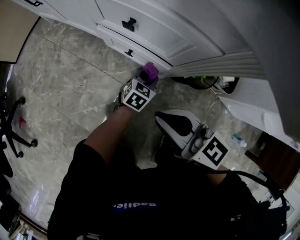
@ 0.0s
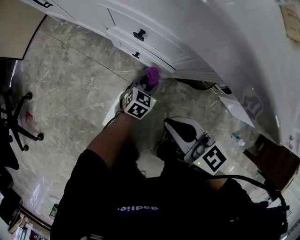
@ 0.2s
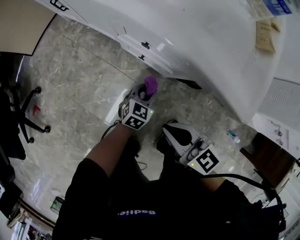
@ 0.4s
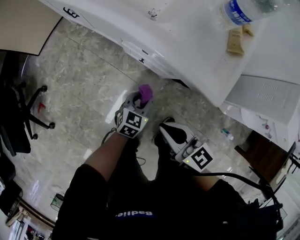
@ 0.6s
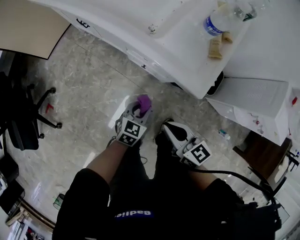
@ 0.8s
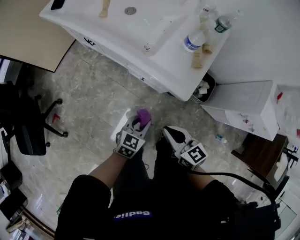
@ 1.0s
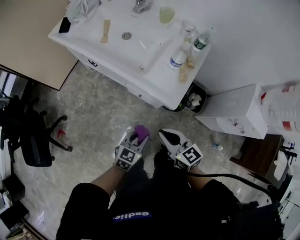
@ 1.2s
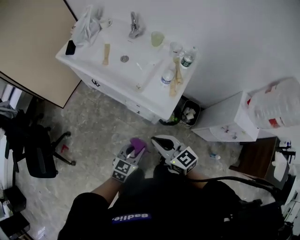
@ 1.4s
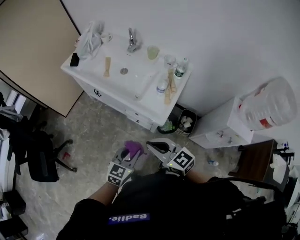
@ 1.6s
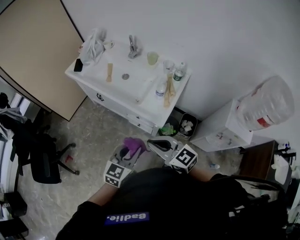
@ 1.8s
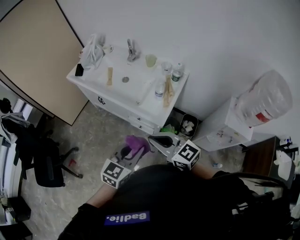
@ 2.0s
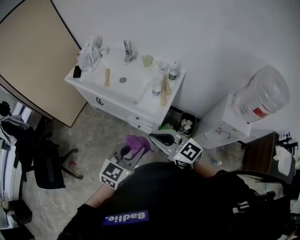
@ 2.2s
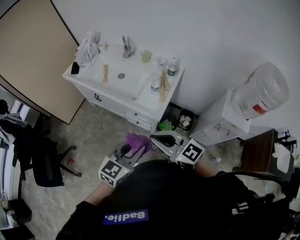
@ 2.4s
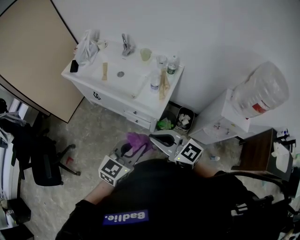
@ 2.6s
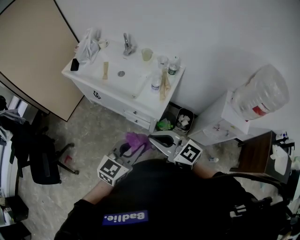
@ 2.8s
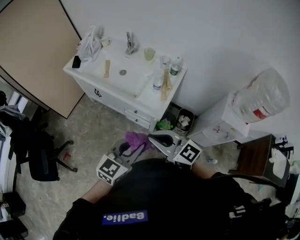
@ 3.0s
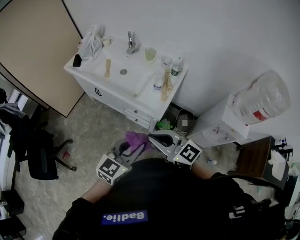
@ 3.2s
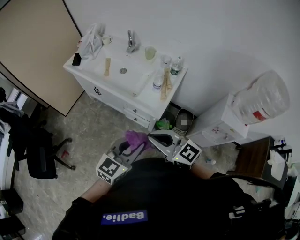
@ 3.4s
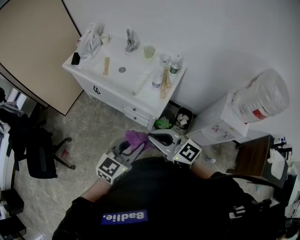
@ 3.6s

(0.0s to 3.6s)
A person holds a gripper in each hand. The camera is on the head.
0.0s - 1.8s: Both grippers move upward, some 70 cm. The left gripper rotates some 20 degrees.
1.8s - 3.6s: The left gripper goes roughly 5 cm upward. The right gripper changes place by about 5 cm.

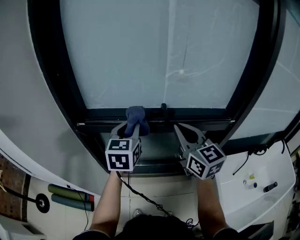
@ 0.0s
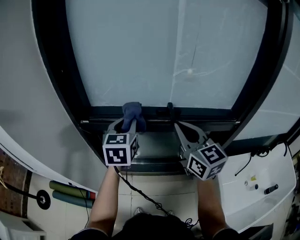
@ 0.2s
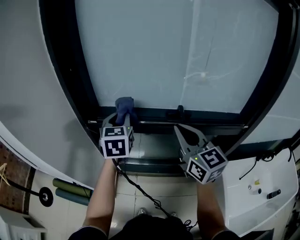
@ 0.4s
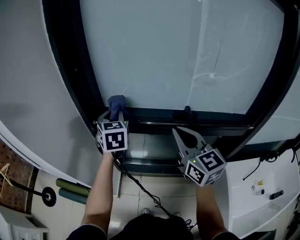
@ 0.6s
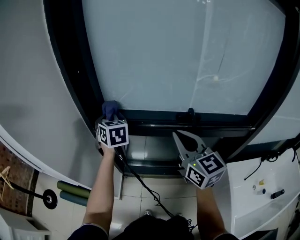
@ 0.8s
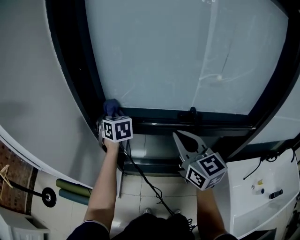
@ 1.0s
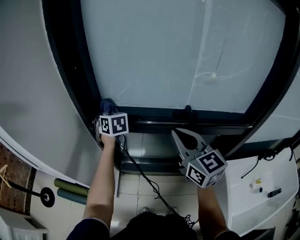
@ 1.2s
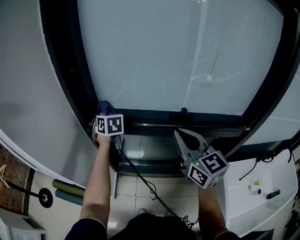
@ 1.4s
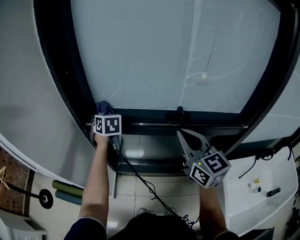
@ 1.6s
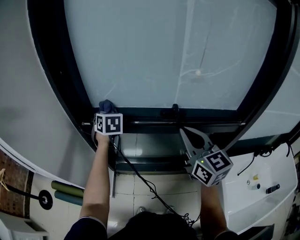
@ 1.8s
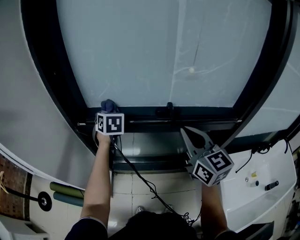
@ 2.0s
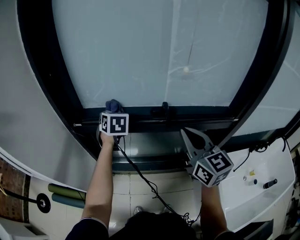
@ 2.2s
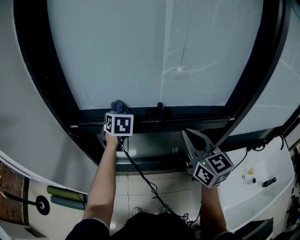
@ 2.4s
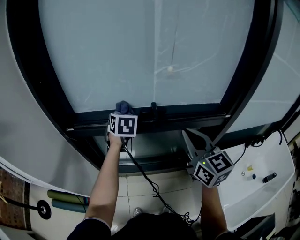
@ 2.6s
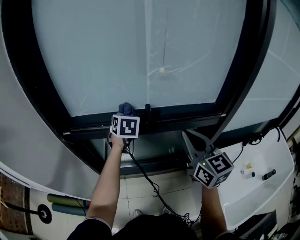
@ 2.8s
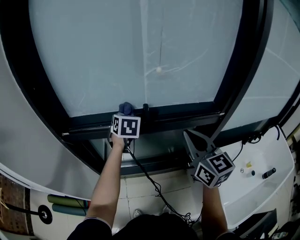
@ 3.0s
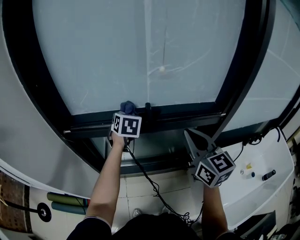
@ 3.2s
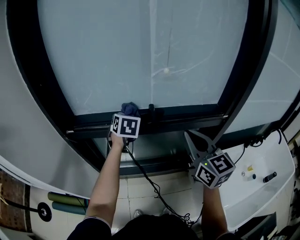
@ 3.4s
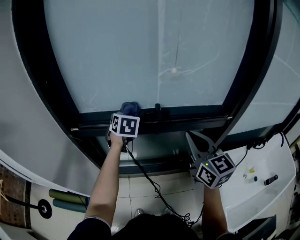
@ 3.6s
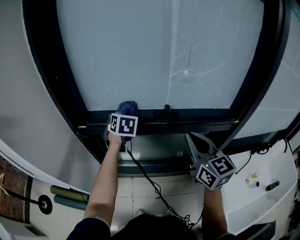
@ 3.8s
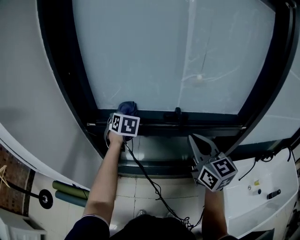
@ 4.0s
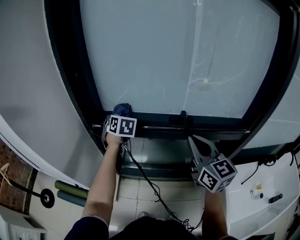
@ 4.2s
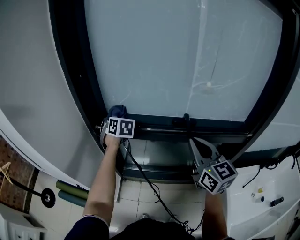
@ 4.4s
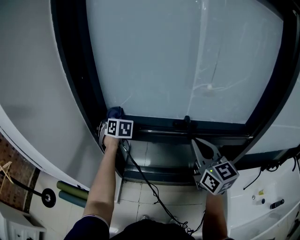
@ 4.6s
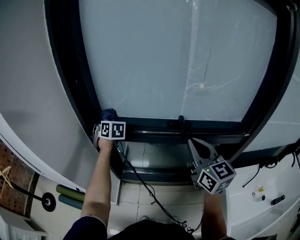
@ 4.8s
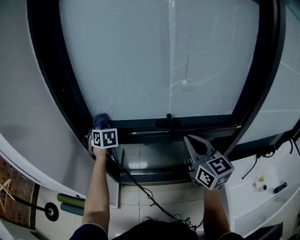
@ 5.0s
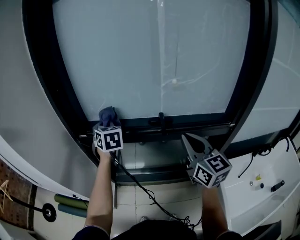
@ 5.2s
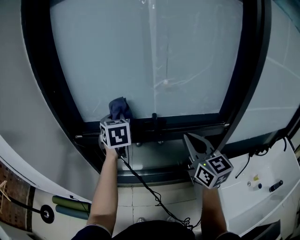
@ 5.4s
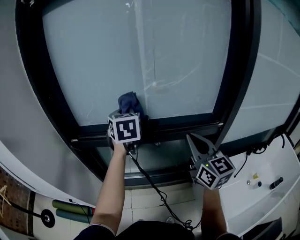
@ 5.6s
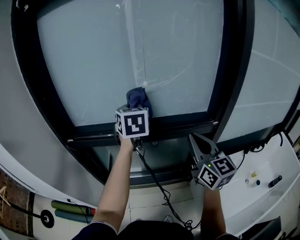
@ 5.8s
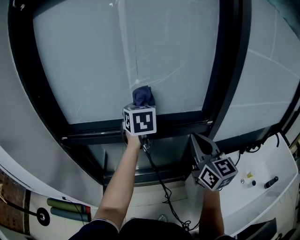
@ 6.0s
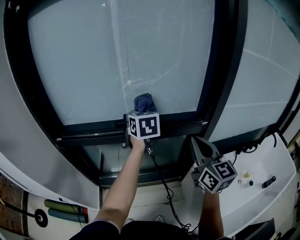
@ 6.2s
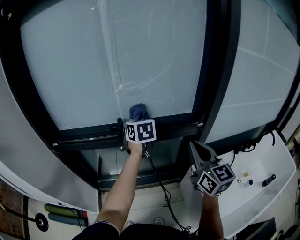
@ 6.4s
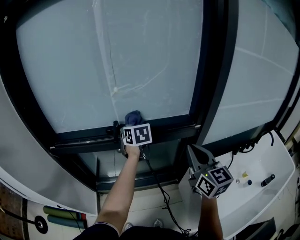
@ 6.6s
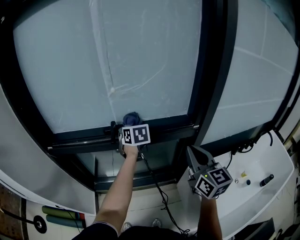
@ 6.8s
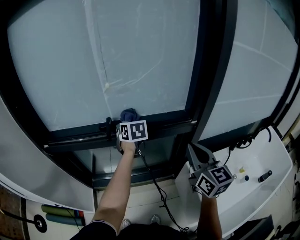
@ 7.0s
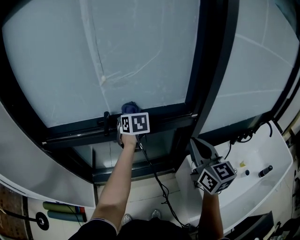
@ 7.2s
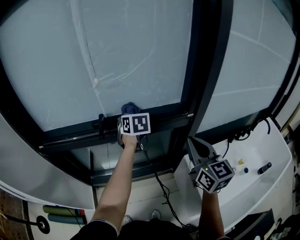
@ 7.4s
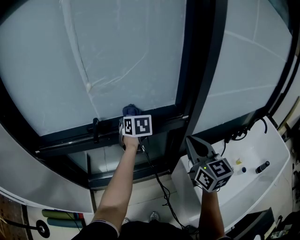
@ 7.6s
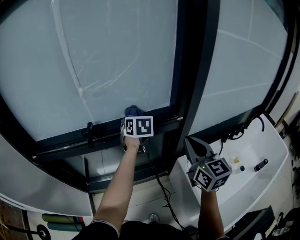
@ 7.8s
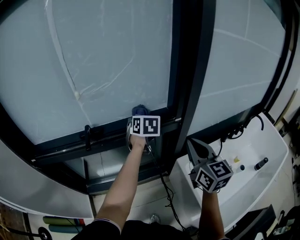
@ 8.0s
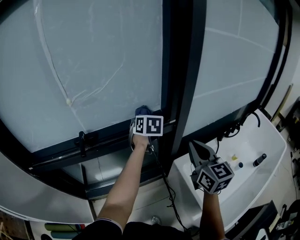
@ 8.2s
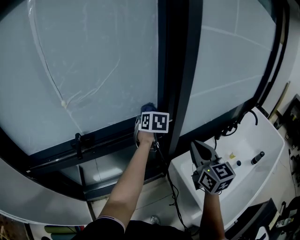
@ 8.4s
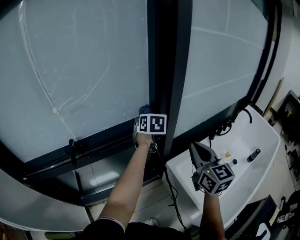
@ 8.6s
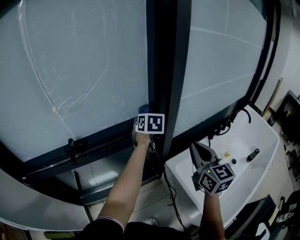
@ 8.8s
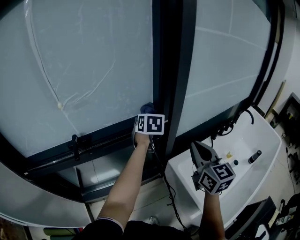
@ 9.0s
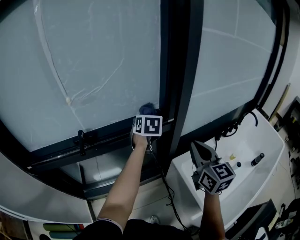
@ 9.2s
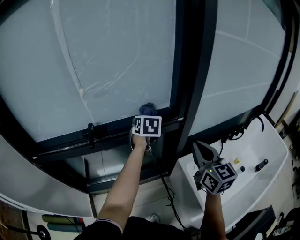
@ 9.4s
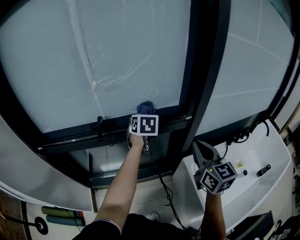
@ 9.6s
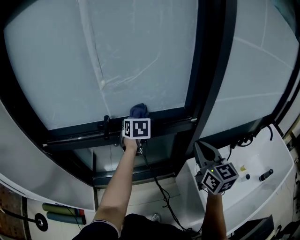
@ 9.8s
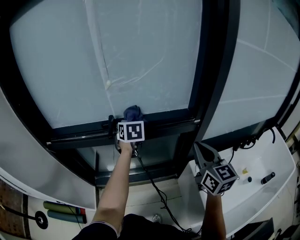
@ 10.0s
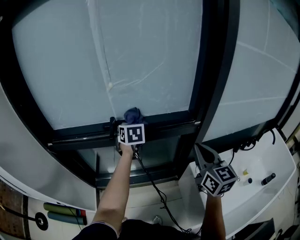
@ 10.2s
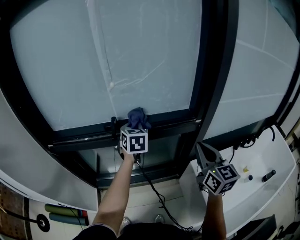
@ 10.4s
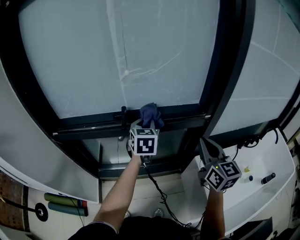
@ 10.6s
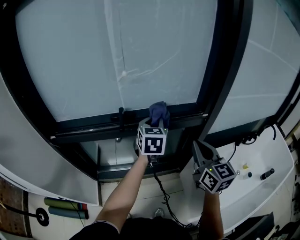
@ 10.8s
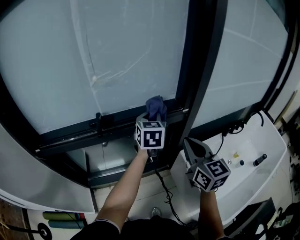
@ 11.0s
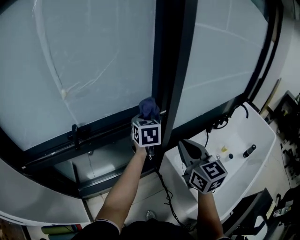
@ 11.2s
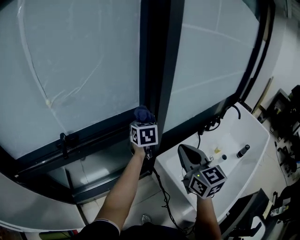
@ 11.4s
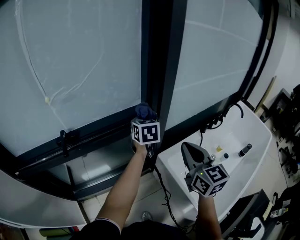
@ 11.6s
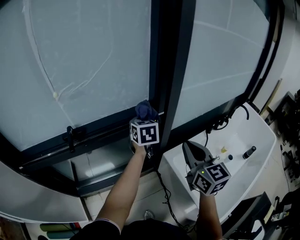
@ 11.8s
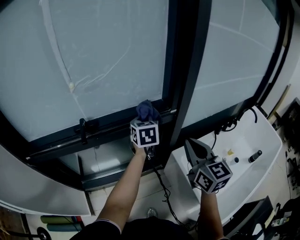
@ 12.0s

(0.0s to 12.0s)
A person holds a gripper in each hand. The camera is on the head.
0.0s - 1.6s: The left gripper heads forward and to the left, covering approximately 25 cm, and swivels some 40 degrees.
1.6s - 3.0s: The left gripper heads to the right, covering about 25 cm, and changes its angle by roughly 30 degrees; the right gripper shifts about 15 cm to the right and backward.
3.0s - 4.4s: The right gripper heads to the left, covering about 10 cm. The left gripper travels to the left by some 25 cm, and turns by some 30 degrees.
4.4s - 6.0s: The right gripper shifts by about 20 cm. The left gripper changes place by some 40 cm, and rotates approximately 40 degrees.
6.0s - 7.6s: The left gripper shifts approximately 20 cm downward and to the right, while the right gripper moves to the right and downward, roughly 10 cm.
7.6s - 9.0s: The right gripper travels to the right by roughly 10 cm. Meanwhile the left gripper heads to the right, covering some 20 cm, and changes its angle by approximately 20 degrees.
9.0s - 10.4s: The left gripper moves to the left, roughly 25 cm, and swivels approximately 20 degrees, while the right gripper is displaced to the left by roughly 10 cm.
10.4s - 12.0s: The left gripper goes approximately 20 cm to the right. The right gripper swings left and right, about 15 cm each way, with 2 reversals.

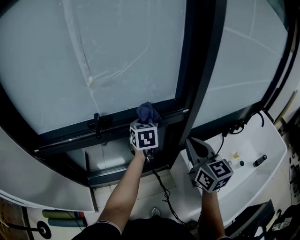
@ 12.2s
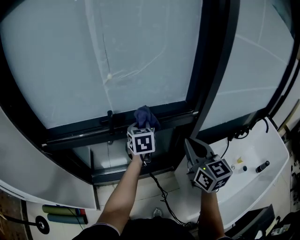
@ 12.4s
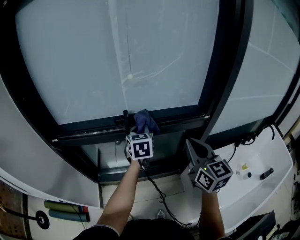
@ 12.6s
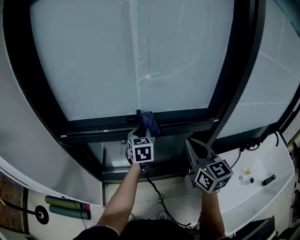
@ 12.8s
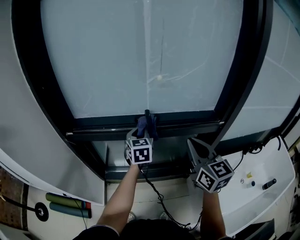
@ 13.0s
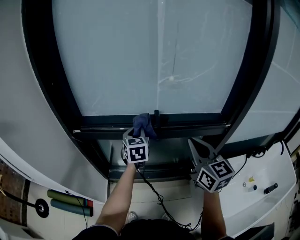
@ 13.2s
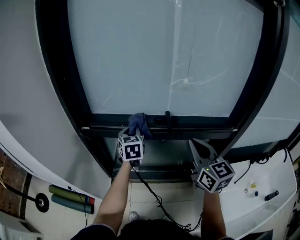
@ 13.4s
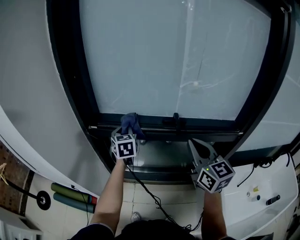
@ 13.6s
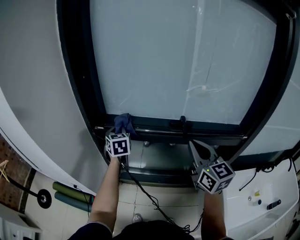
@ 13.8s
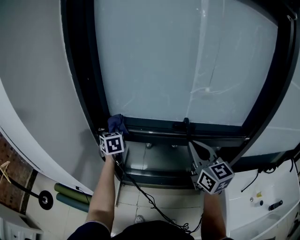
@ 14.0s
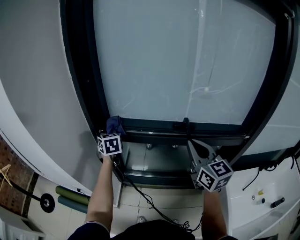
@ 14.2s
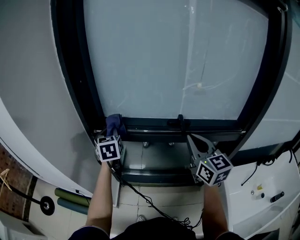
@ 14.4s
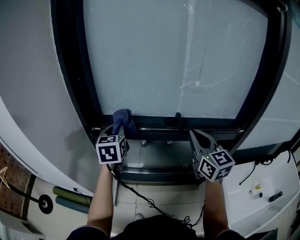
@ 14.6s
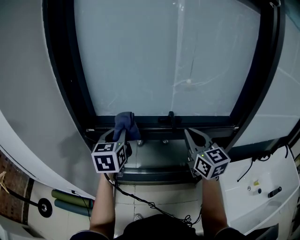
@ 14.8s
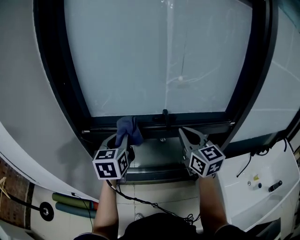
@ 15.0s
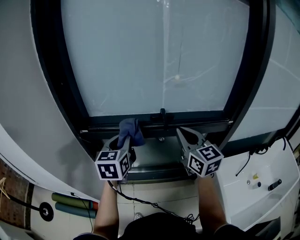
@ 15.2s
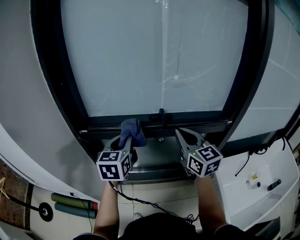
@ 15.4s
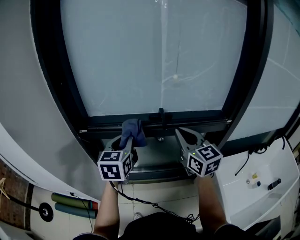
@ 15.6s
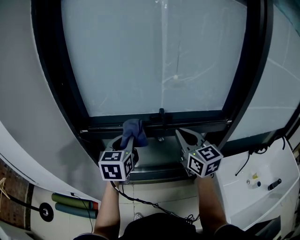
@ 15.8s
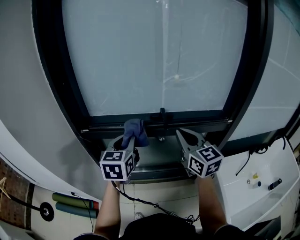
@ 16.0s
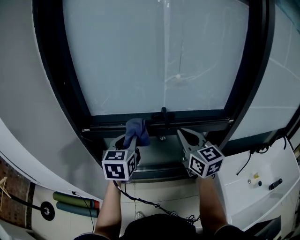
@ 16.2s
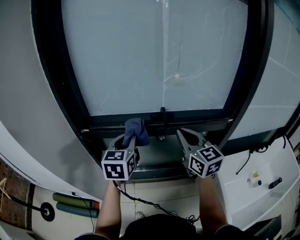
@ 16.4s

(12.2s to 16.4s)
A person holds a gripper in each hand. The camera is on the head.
12.2s - 13.6s: The right gripper changes place by approximately 25 cm, and turns by roughly 20 degrees. The left gripper shifts by some 40 cm, and swivels approximately 30 degrees.
13.6s - 15.0s: The left gripper heads backward and upward, covering some 15 cm, and reaches about 15 cm to the left, then returns.
15.0s - 16.4s: The grippers make only small movements.

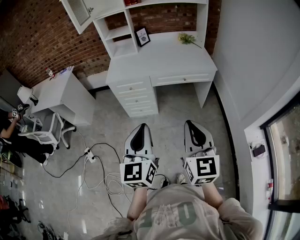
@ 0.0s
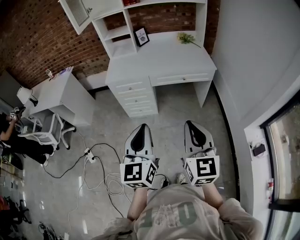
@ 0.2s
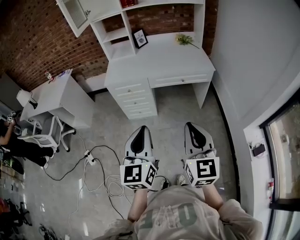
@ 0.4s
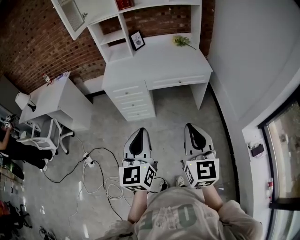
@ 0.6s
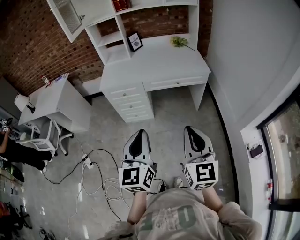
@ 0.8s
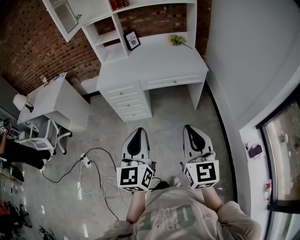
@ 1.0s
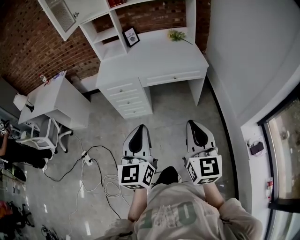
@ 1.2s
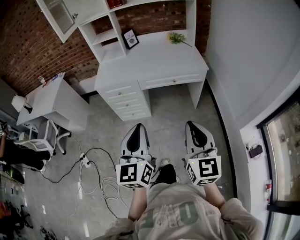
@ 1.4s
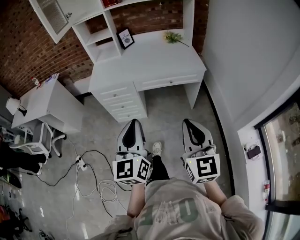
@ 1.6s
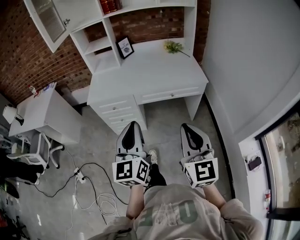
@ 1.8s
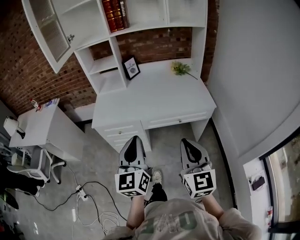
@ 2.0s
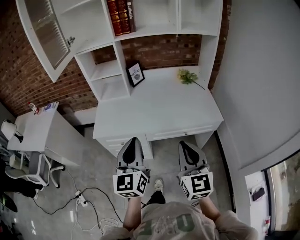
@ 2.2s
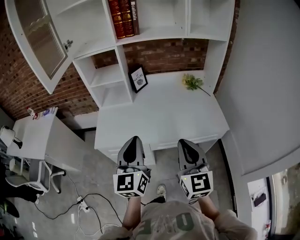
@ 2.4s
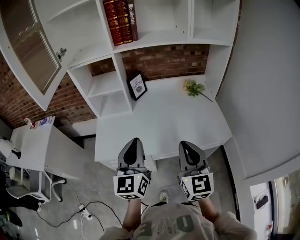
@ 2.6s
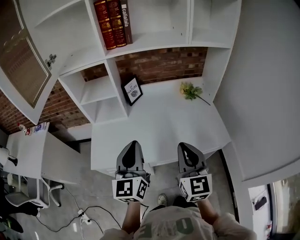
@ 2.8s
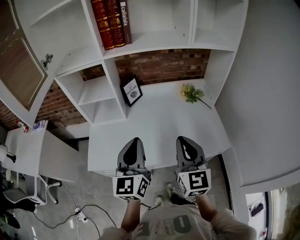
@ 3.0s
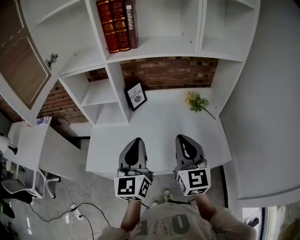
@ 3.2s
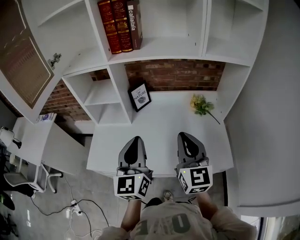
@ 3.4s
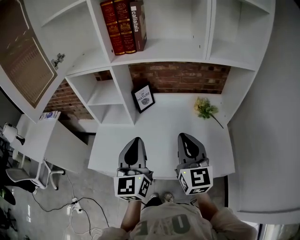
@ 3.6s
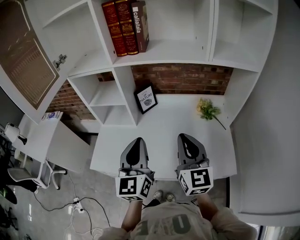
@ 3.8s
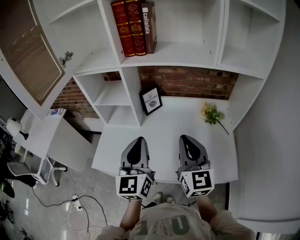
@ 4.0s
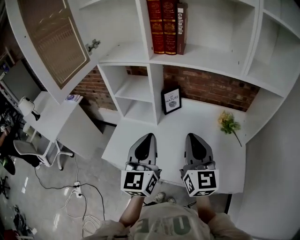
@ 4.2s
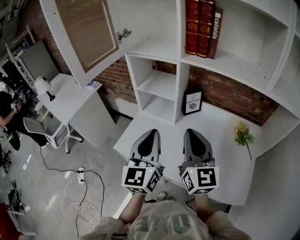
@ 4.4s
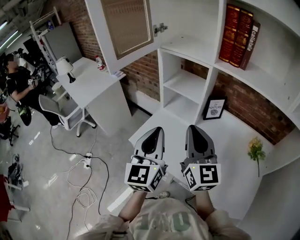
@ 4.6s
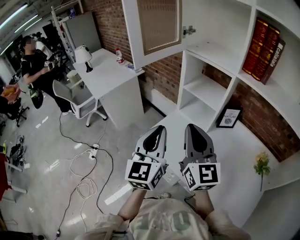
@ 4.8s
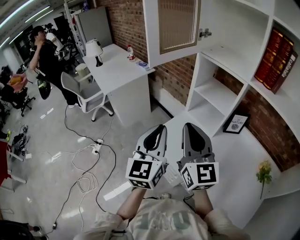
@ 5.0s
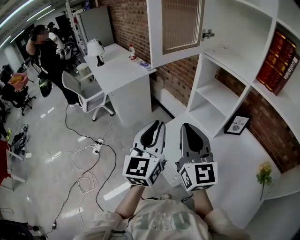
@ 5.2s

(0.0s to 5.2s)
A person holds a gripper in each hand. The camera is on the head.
0.0s - 1.8s: The grippers both shift forward by about 15 cm.
1.8s - 3.4s: Both grippers are carried forward, some 50 cm.
3.4s - 5.2s: The right gripper moves some 35 cm, and swivels about 50 degrees. The left gripper moves approximately 30 cm, and turns by approximately 40 degrees.
